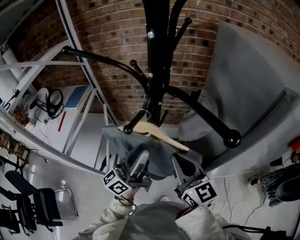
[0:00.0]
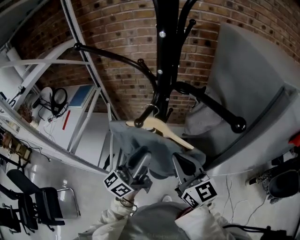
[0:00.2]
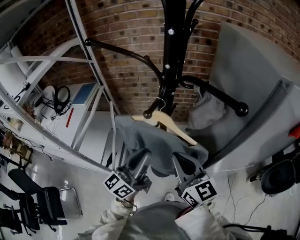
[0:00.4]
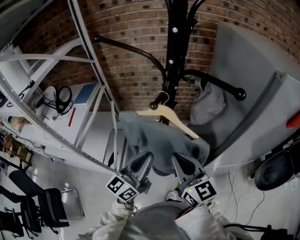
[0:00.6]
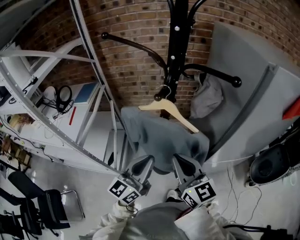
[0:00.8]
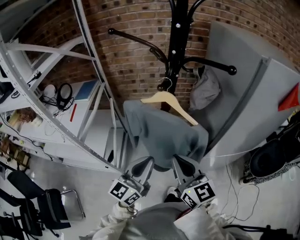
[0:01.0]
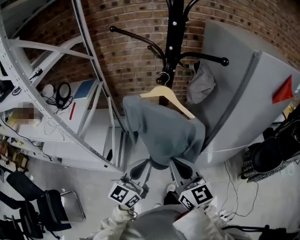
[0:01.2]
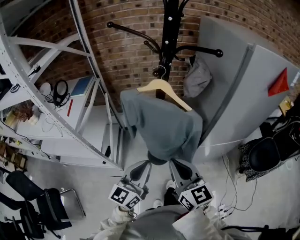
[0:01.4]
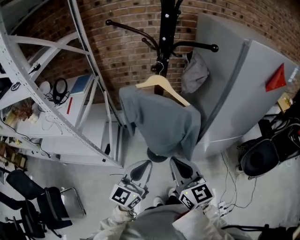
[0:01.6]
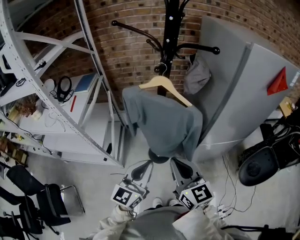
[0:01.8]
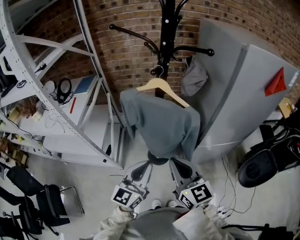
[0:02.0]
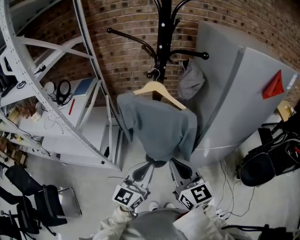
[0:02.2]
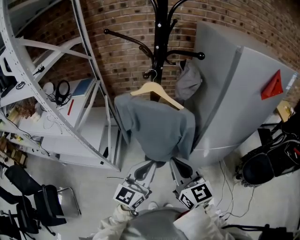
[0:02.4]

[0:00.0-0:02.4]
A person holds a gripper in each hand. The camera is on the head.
0.0 to 1.2 s: Both grippers move backward, about 20 cm. The left gripper changes its angle by some 30 degrees, and closes its fingers.
1.2 to 2.4 s: The right gripper is displaced to the right by about 5 cm. The left gripper shifts about 10 cm to the right and backward.

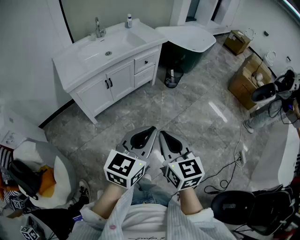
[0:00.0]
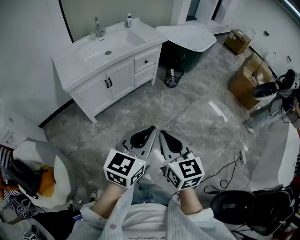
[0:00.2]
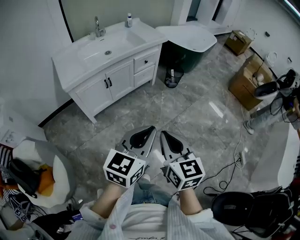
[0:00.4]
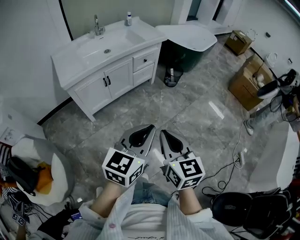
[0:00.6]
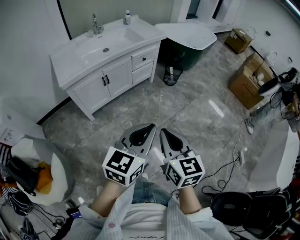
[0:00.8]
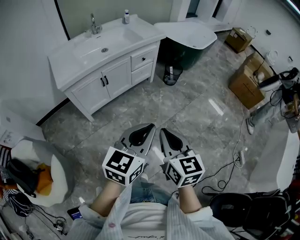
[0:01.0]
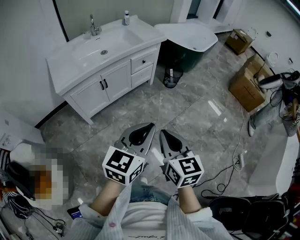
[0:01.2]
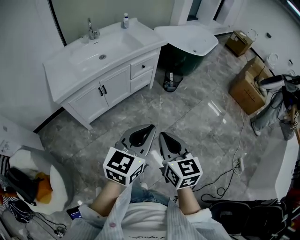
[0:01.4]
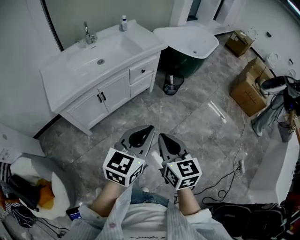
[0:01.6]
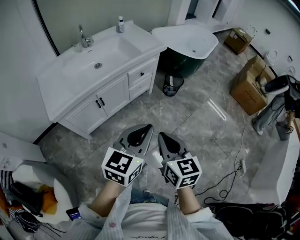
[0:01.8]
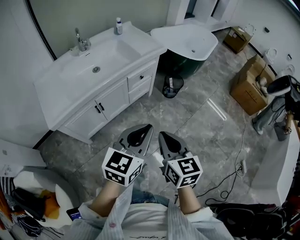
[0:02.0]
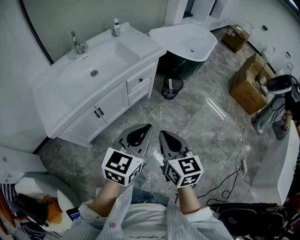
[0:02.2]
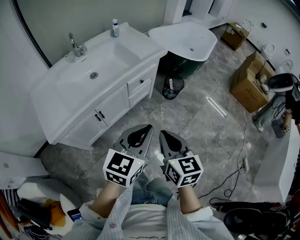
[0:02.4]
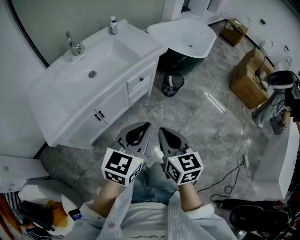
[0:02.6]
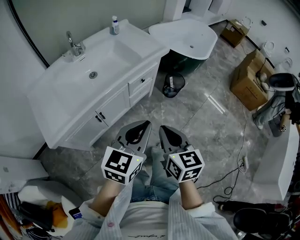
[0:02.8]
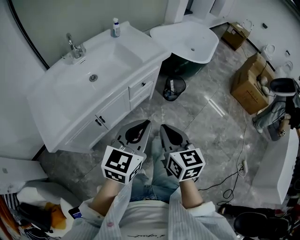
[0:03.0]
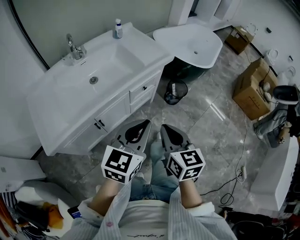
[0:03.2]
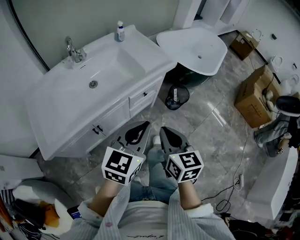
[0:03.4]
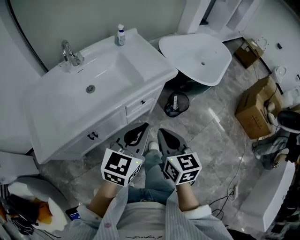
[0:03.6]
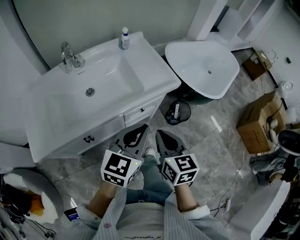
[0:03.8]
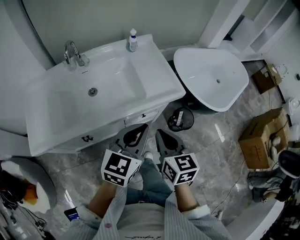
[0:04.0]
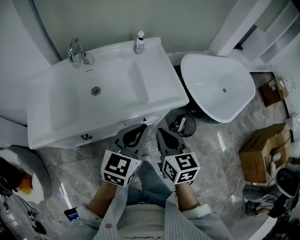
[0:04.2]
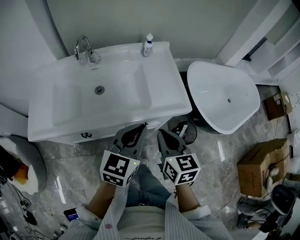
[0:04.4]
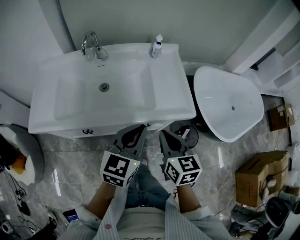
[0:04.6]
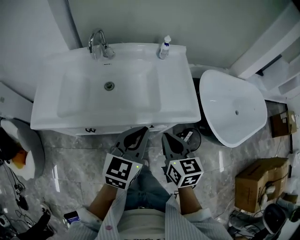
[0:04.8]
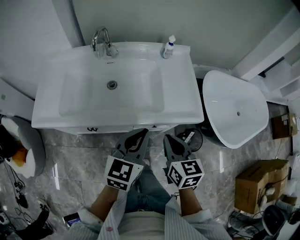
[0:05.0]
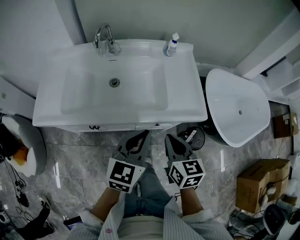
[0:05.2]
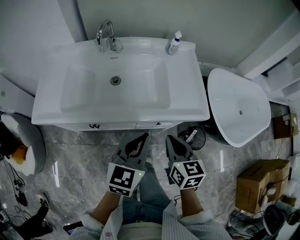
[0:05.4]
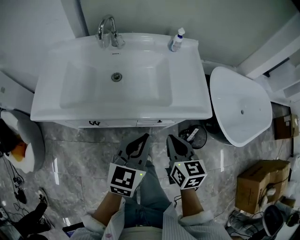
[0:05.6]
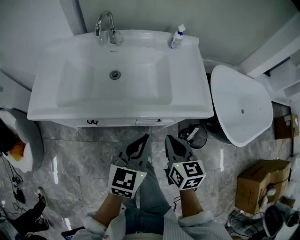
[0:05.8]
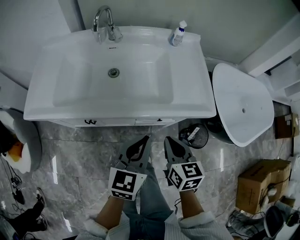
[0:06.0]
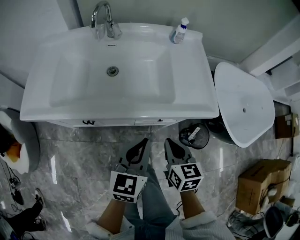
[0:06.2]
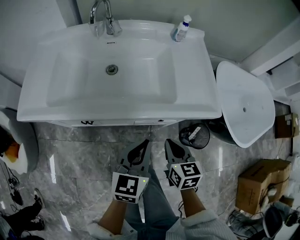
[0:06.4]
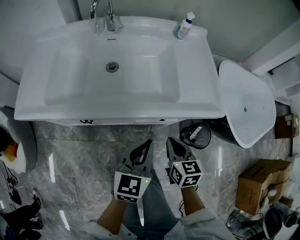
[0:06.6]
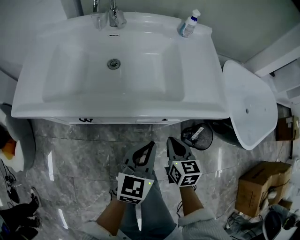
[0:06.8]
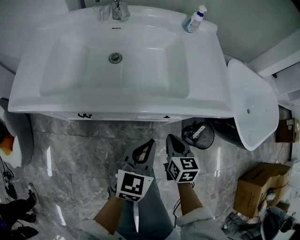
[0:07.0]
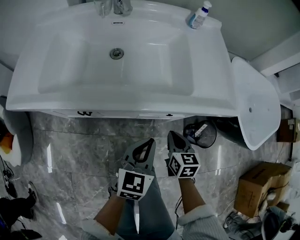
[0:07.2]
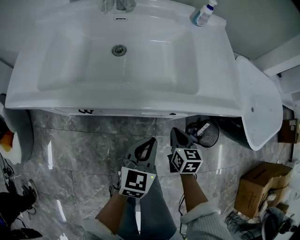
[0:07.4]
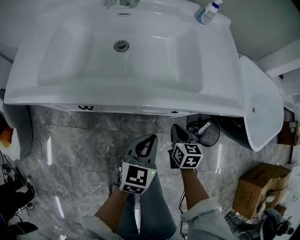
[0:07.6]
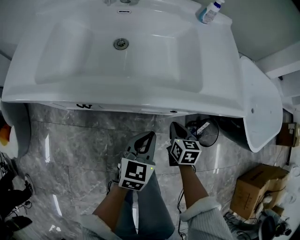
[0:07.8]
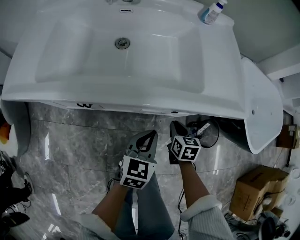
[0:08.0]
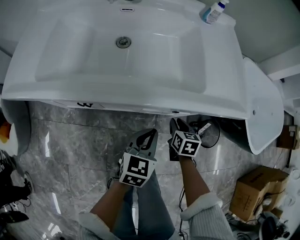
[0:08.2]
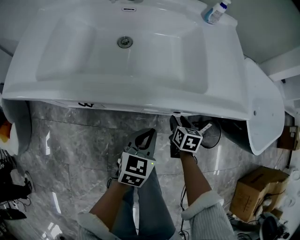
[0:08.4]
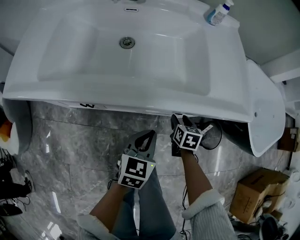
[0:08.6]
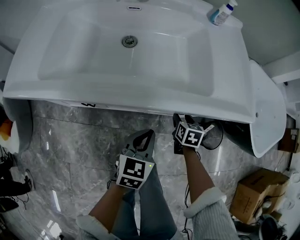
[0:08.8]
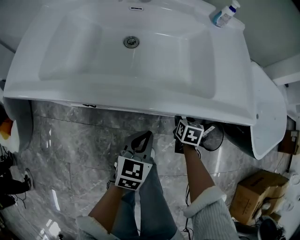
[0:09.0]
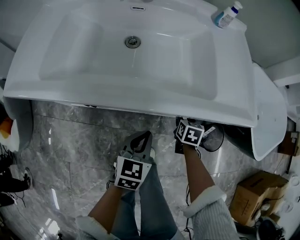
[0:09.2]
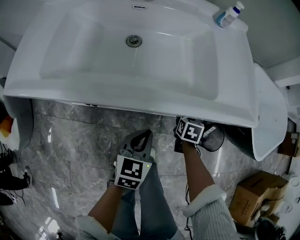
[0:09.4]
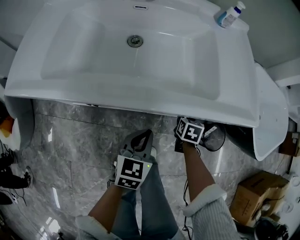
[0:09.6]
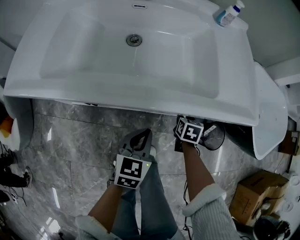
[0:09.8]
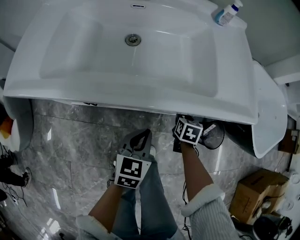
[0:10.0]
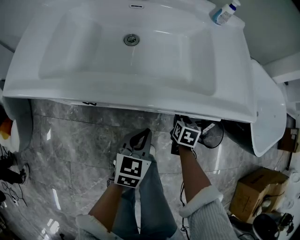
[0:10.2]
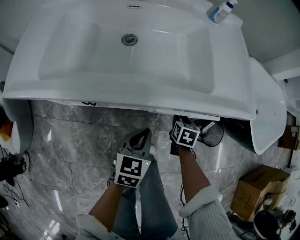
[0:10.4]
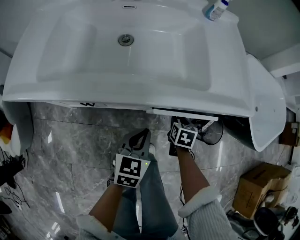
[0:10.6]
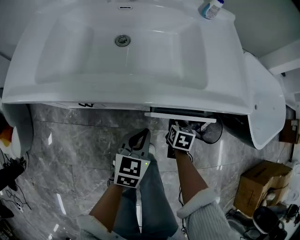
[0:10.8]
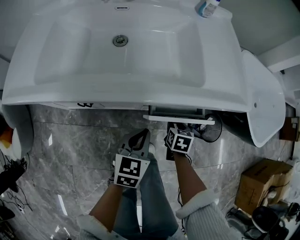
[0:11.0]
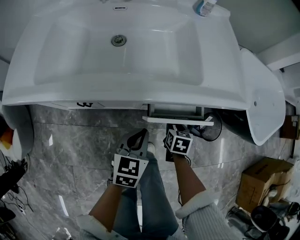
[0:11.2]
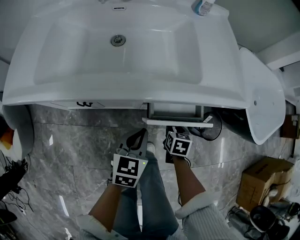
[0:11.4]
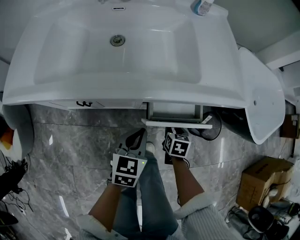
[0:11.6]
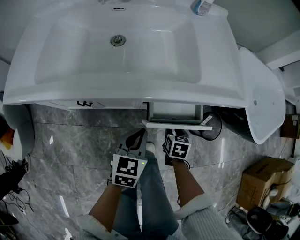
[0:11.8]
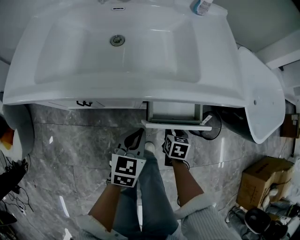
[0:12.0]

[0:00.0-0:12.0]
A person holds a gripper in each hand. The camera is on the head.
0.0 to 1.6 s: The grippers both shift forward by approximately 20 cm.
1.6 to 3.0 s: The right gripper shifts some 20 cm forward; the left gripper shifts about 20 cm forward and to the left.
3.0 to 4.4 s: The left gripper shifts by approximately 30 cm, and rotates roughly 30 degrees, while the right gripper changes place by about 30 cm, and changes its angle by approximately 30 degrees.
4.4 to 6.0 s: Both grippers travel together downward, about 10 cm.
6.0 to 7.6 s: Both grippers travel together downward, about 20 cm.
7.6 to 9.0 s: The right gripper travels forward and downward by roughly 10 cm, and opens up, while the left gripper changes place by approximately 5 cm.
9.0 to 10.4 s: The grippers stay close to where they were, moving slightly.
10.4 to 12.0 s: The right gripper goes approximately 10 cm backward.

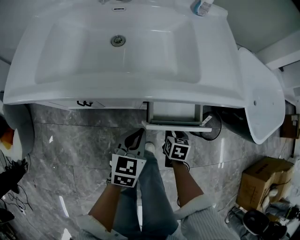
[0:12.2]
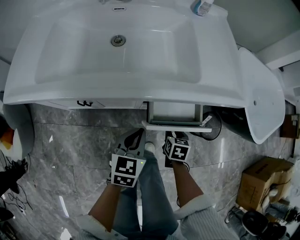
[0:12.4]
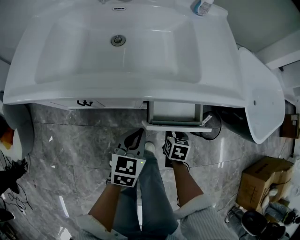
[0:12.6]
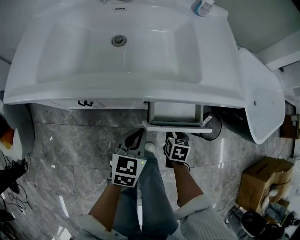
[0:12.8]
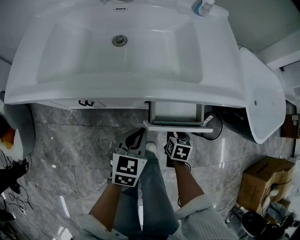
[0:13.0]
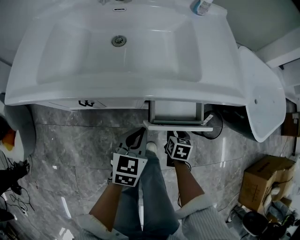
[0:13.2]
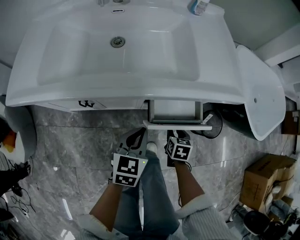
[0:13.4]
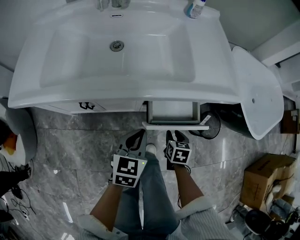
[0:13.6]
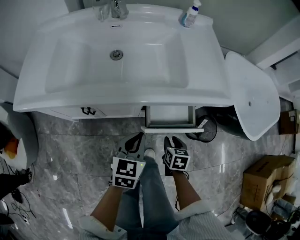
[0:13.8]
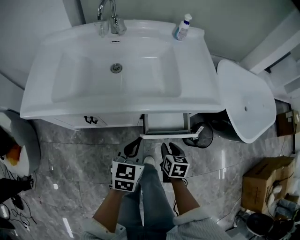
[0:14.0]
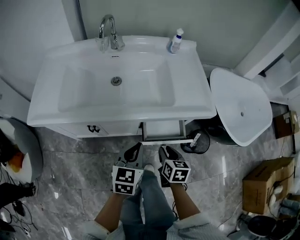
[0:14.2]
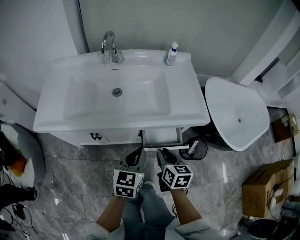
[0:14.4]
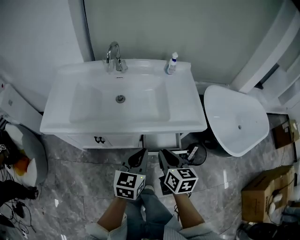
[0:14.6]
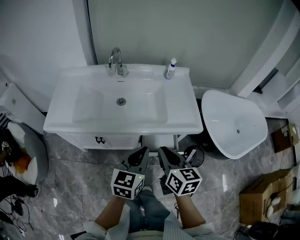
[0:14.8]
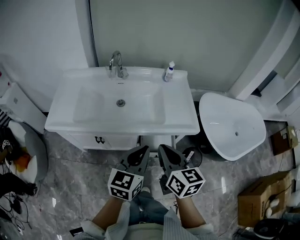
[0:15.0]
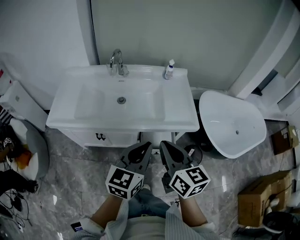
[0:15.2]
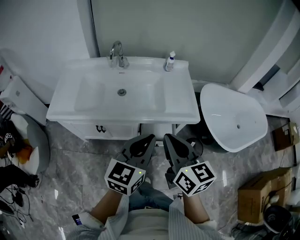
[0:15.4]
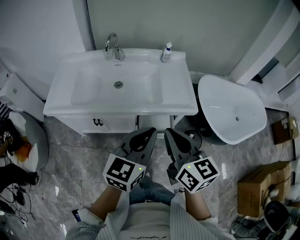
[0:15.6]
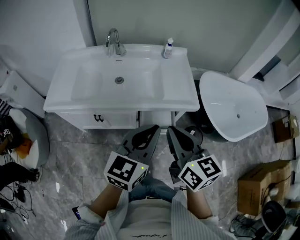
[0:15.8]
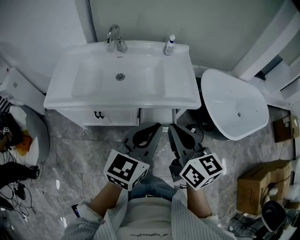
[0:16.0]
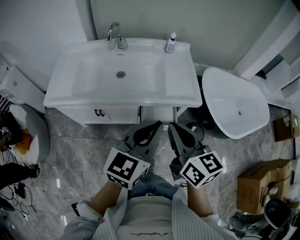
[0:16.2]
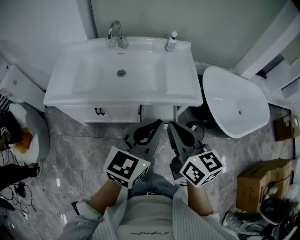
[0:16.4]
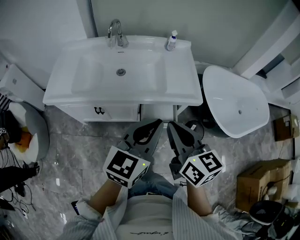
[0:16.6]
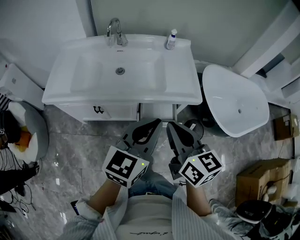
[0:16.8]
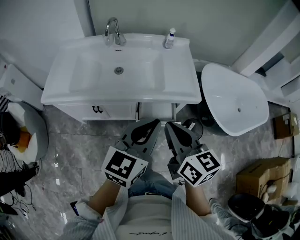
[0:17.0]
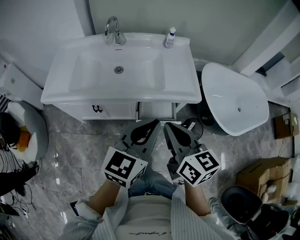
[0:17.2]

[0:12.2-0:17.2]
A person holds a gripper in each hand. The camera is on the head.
12.2 to 13.8 s: The right gripper changes place by roughly 5 cm.
13.8 to 15.6 s: Both grippers move upward, approximately 40 cm. The left gripper turns by some 20 degrees. Meanwhile the right gripper tips its fingers upward by some 40 degrees, and closes up.
15.6 to 17.2 s: There are only small adjustments of the grippers.

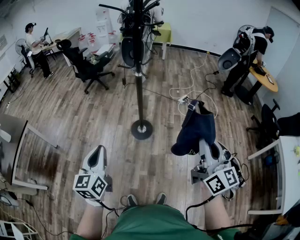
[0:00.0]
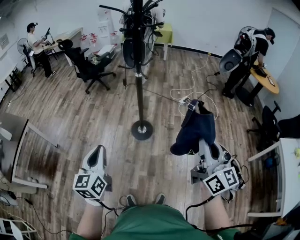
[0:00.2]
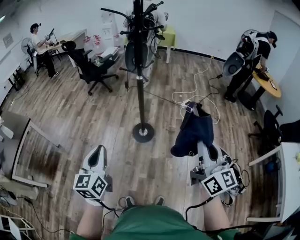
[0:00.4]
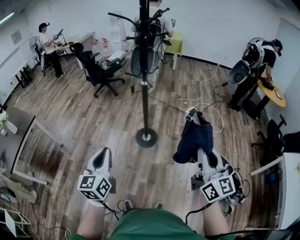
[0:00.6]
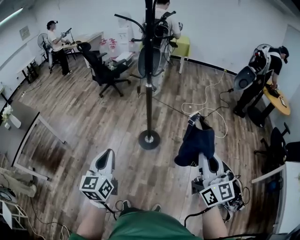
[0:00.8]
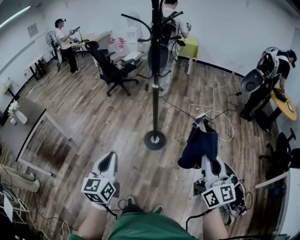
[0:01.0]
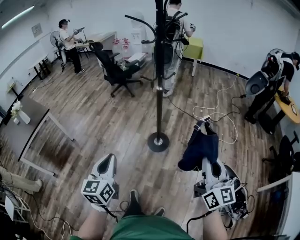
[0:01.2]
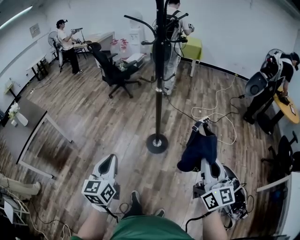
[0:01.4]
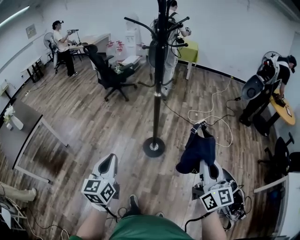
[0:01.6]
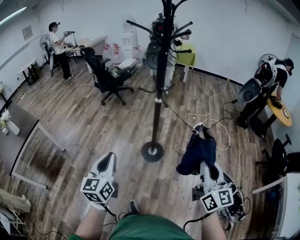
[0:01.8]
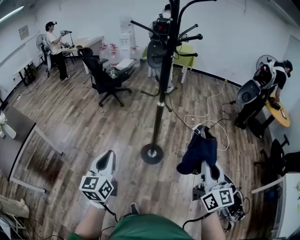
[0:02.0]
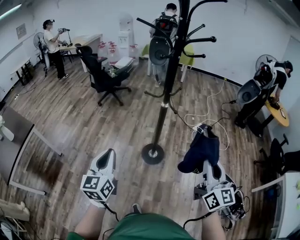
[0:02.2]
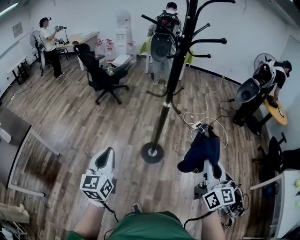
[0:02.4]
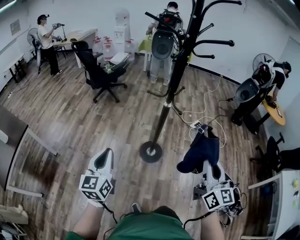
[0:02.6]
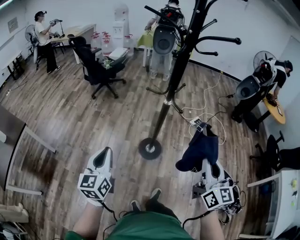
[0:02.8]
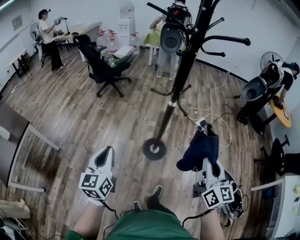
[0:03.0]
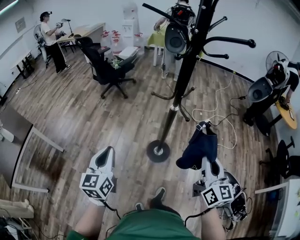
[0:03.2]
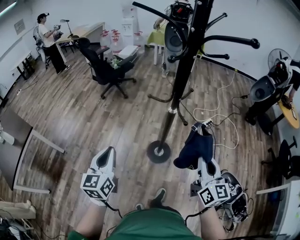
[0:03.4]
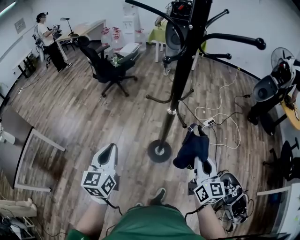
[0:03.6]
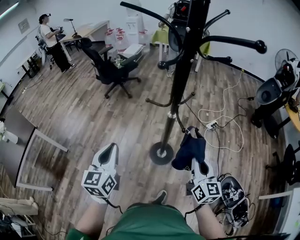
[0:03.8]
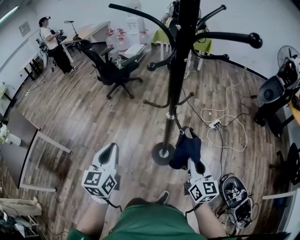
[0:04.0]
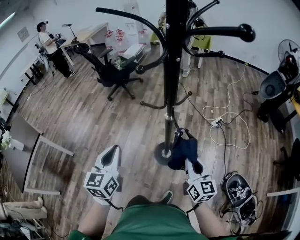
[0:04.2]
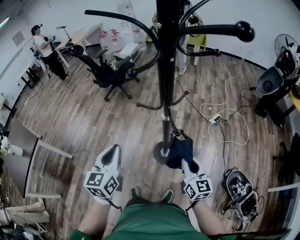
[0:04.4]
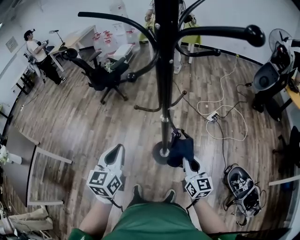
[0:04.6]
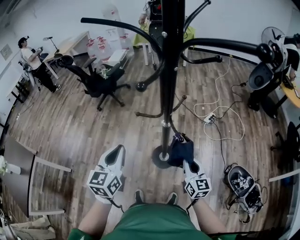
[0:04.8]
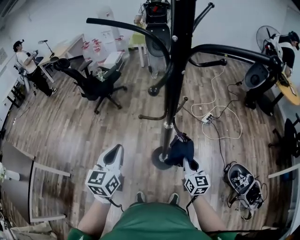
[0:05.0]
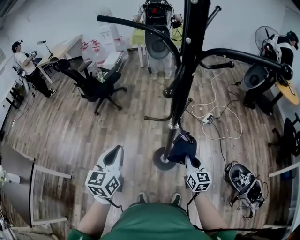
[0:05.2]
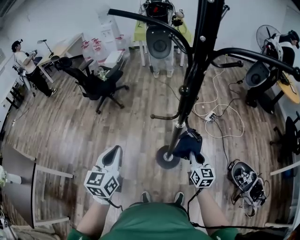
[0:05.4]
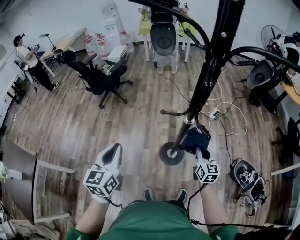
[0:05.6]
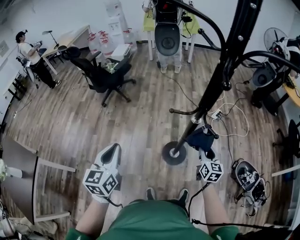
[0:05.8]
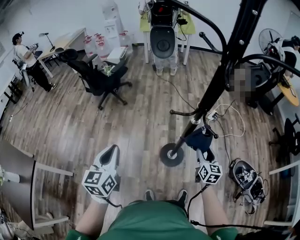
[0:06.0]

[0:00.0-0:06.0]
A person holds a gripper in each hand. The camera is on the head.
0.0 to 1.6 s: The right gripper travels forward by roughly 5 cm.
1.6 to 3.0 s: Both grippers travel together forward and to the left, approximately 25 cm.
3.0 to 4.4 s: The right gripper moves forward and downward, some 25 cm, while the left gripper travels forward and to the right by roughly 20 cm.
4.4 to 6.0 s: The left gripper travels to the left by roughly 25 cm. Meanwhile the right gripper shifts roughly 15 cm to the left, downward and forward, swivels some 30 degrees, and opens its fingers.
